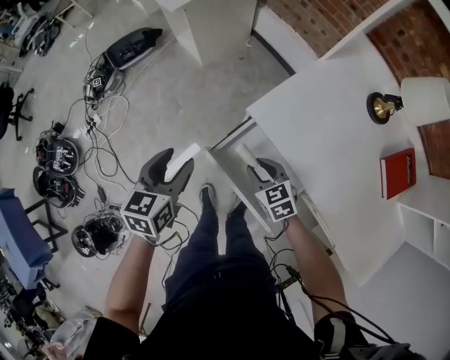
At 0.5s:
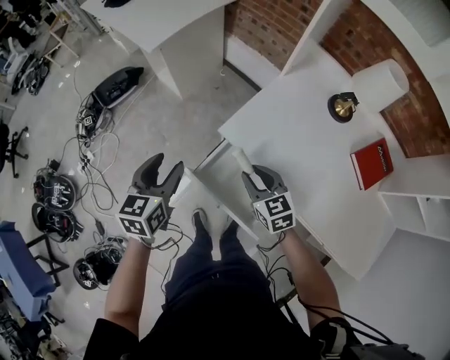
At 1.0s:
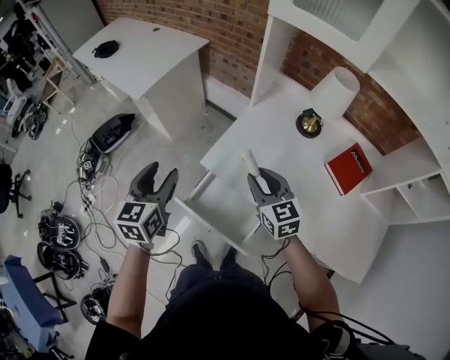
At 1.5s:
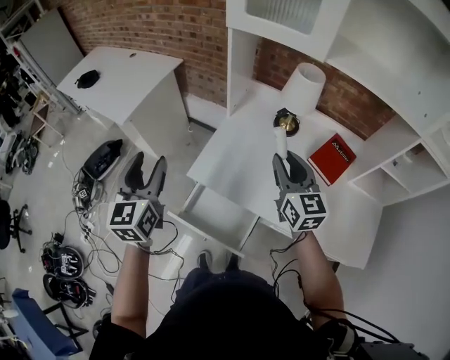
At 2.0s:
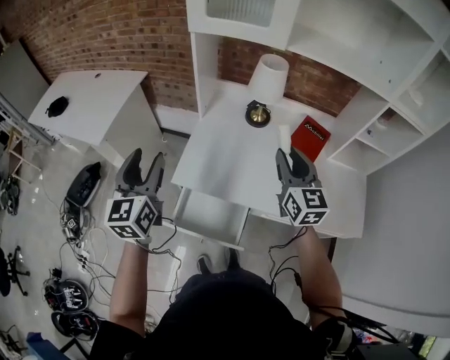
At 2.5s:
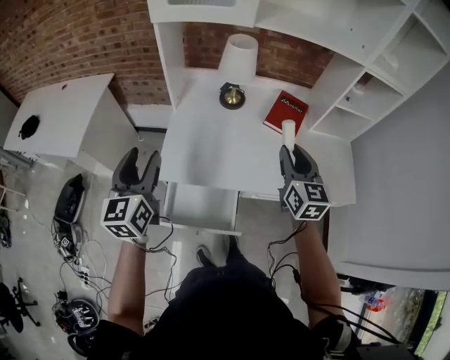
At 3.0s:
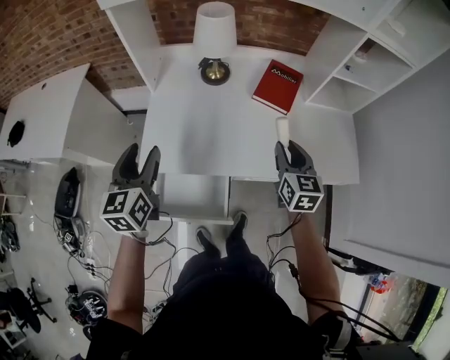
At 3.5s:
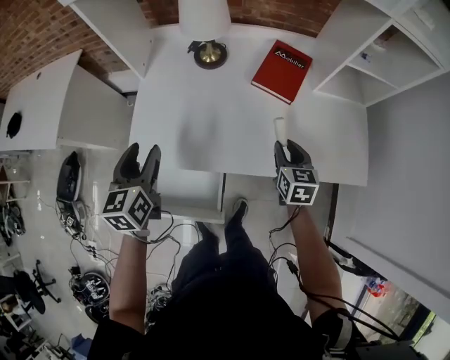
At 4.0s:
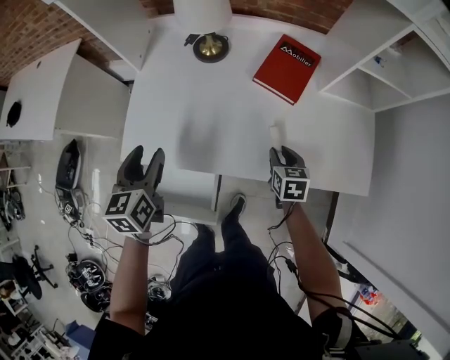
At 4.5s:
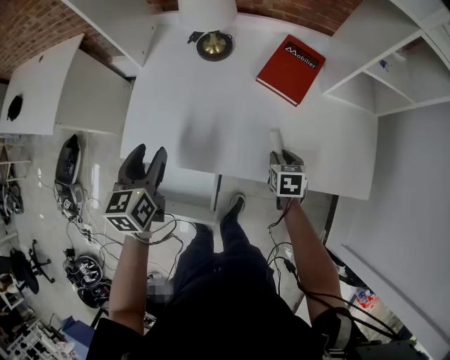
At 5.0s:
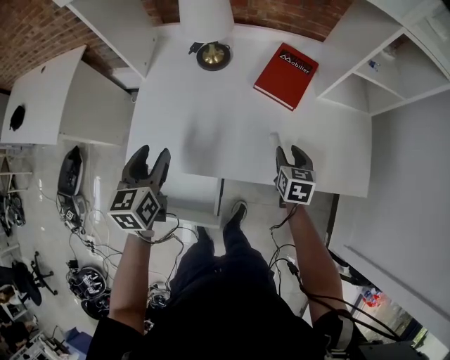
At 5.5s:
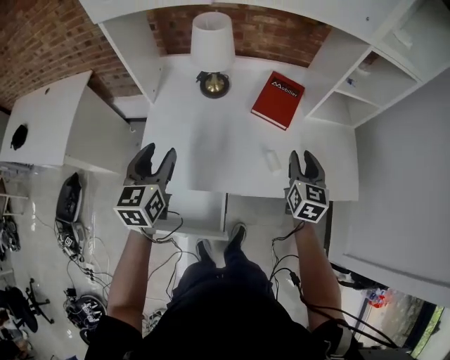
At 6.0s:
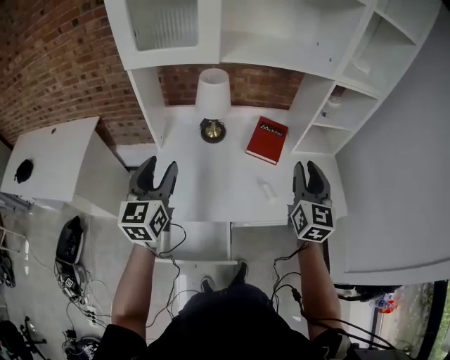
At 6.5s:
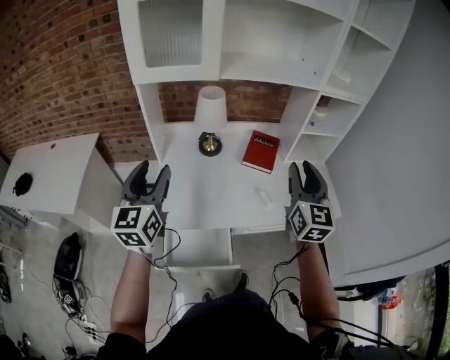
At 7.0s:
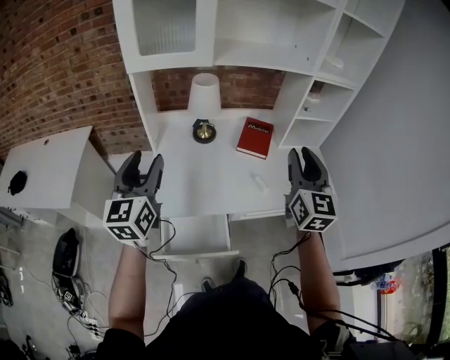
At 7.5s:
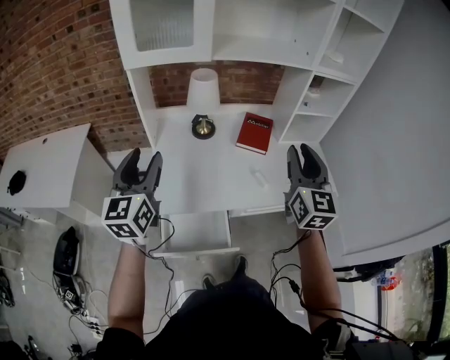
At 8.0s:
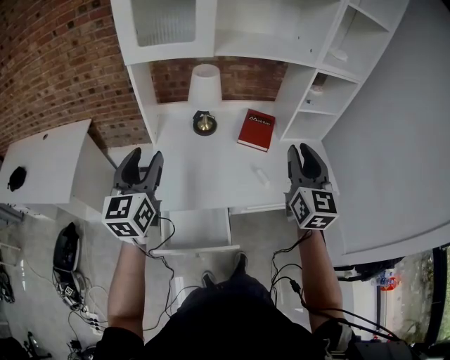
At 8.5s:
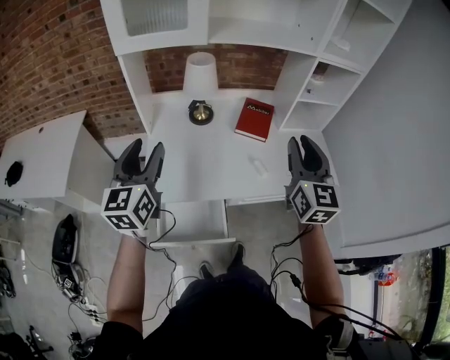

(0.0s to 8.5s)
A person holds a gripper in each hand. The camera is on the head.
0.0s - 2.0s: Both grippers travel together upward, some 35 cm. The left gripper rotates approximately 40 degrees; the right gripper points its fingers about 40 degrees further upward.
2.0s - 4.0s: Both grippers travel together downward and to the right, approximately 35 cm. The right gripper points its fingers some 40 degrees further downward; the left gripper rotates roughly 30 degrees.
4.0s - 6.5s: The left gripper heads upward, covering approximately 25 cm, and changes its angle by roughly 30 degrees. The right gripper moves upward, some 40 cm, and tips its fingers upward by about 50 degrees.
6.5s - 8.5s: The grippers stay close to where they were, moving slightly.

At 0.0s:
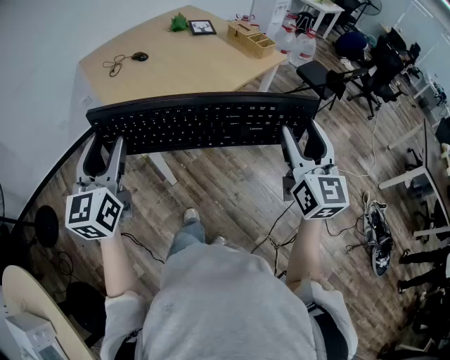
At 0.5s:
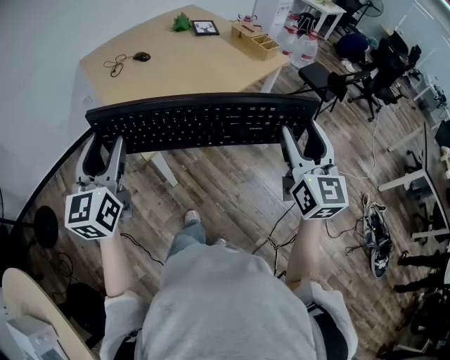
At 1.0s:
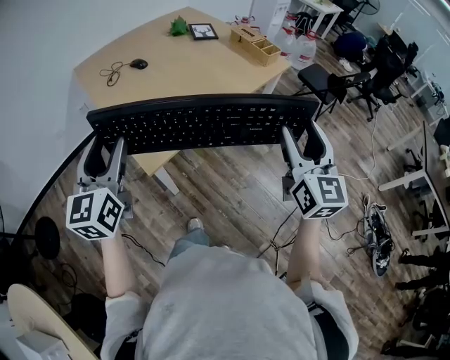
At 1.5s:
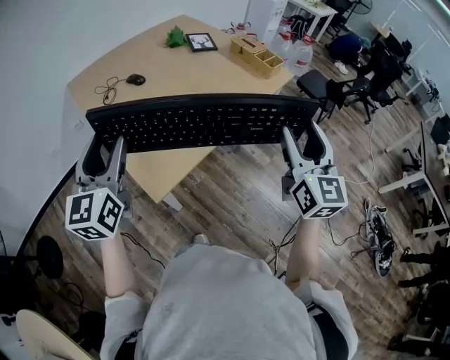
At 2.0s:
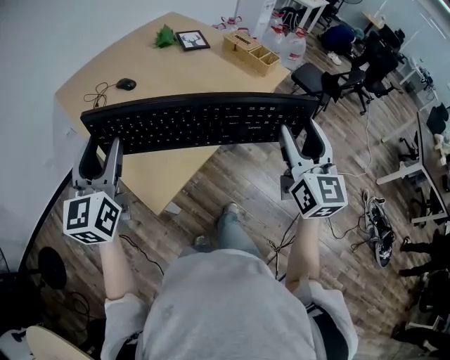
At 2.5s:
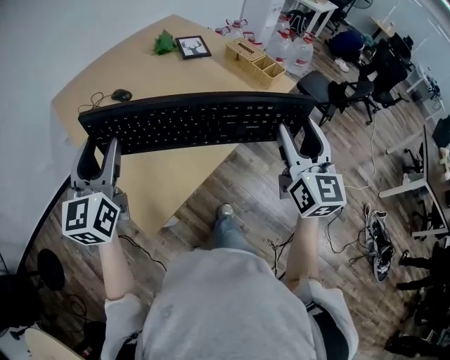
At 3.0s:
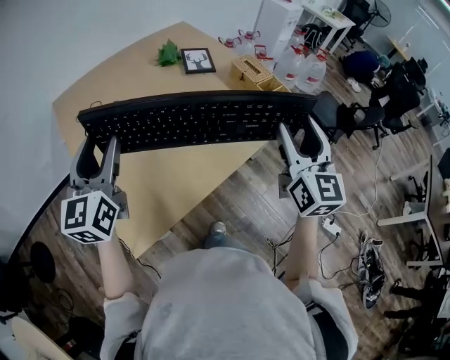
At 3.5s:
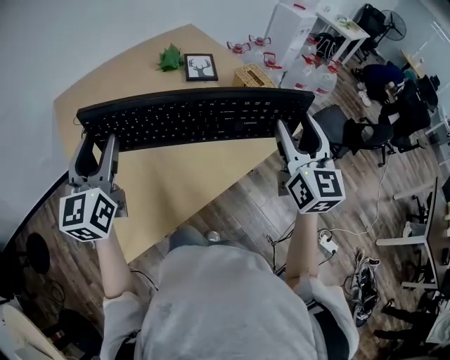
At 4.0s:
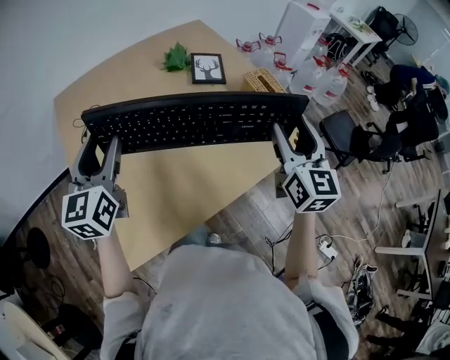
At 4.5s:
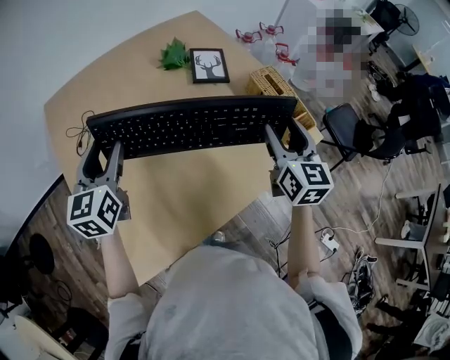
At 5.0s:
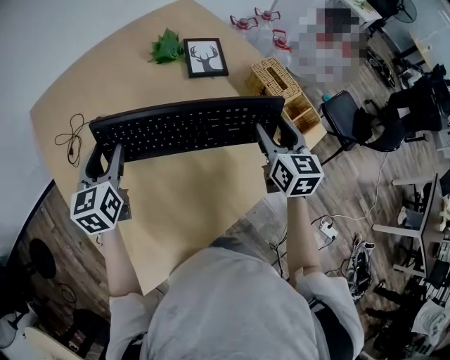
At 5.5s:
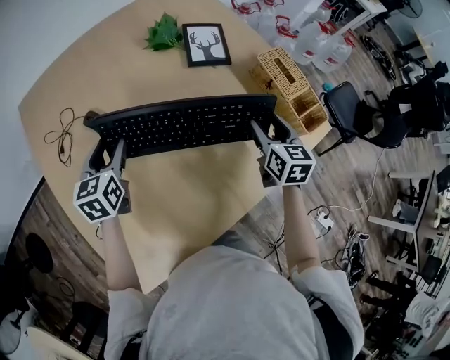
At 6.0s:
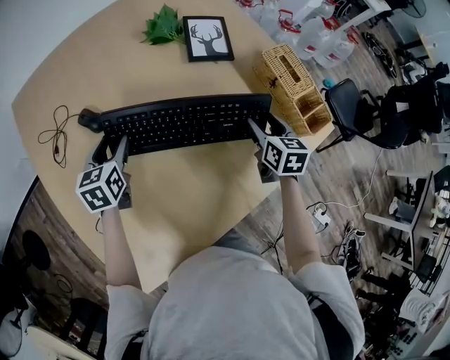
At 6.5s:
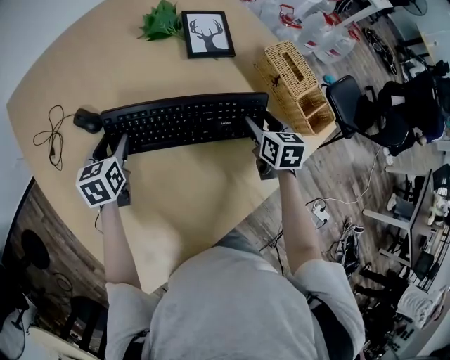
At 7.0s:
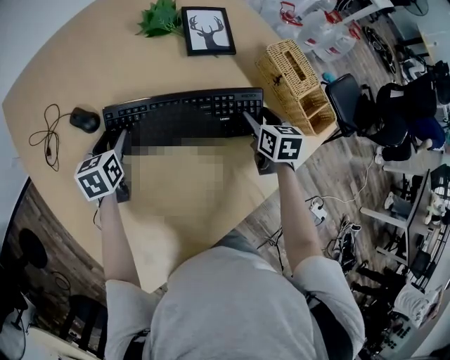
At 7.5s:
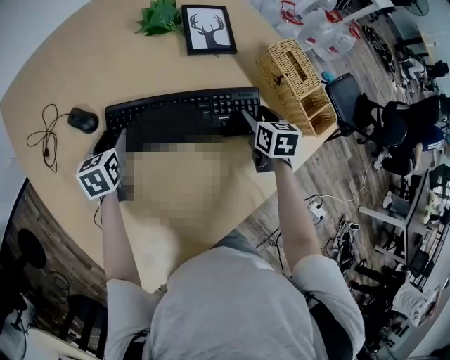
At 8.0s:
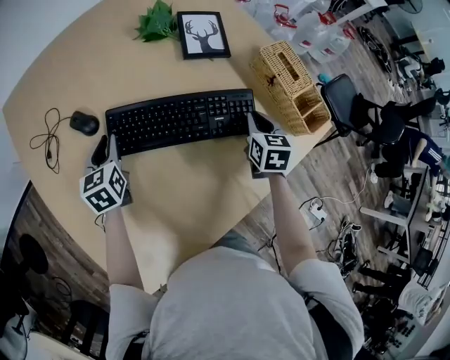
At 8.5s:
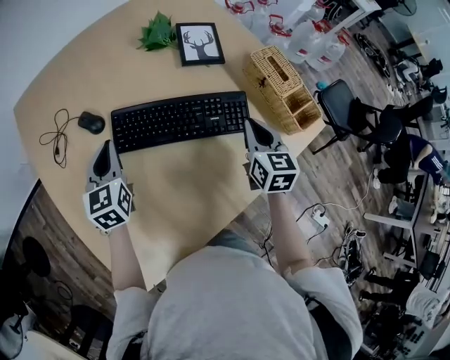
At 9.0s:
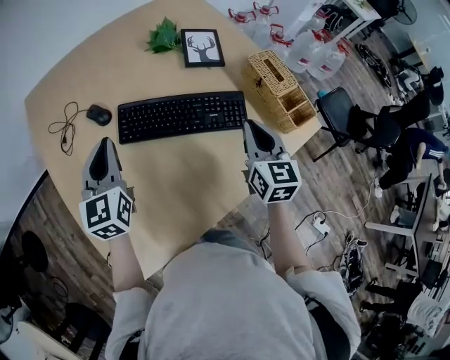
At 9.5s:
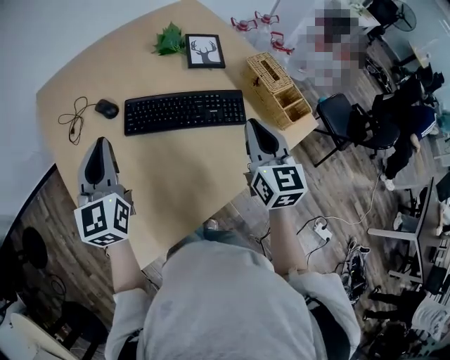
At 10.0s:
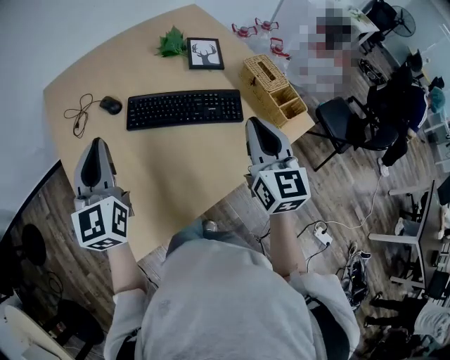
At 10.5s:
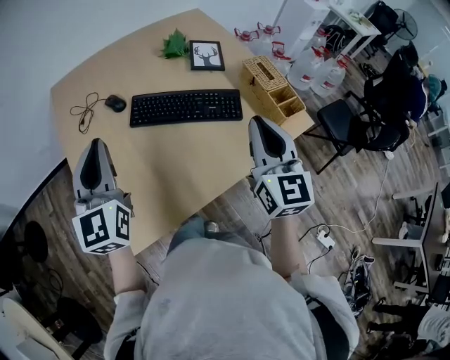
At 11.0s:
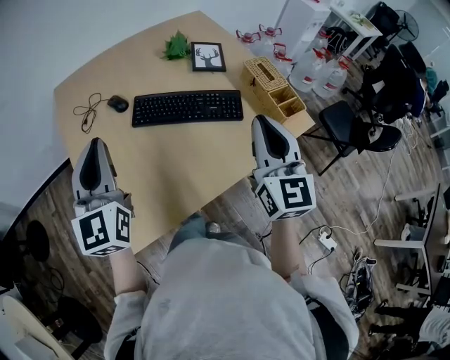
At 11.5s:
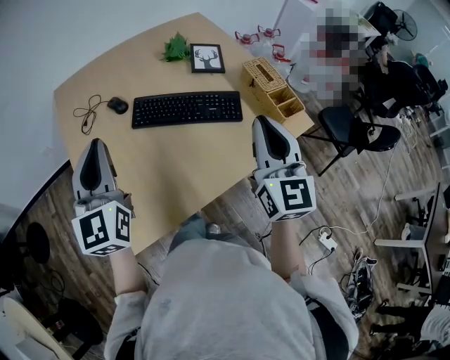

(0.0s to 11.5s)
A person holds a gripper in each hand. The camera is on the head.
0.0s - 2.0s: The two grippers go approximately 20 cm forward.
2.0s - 4.0s: Both grippers move forward, roughly 35 cm.
4.0s - 6.0s: Both grippers move downward and forward, some 35 cm. The left gripper tips its fingers downward by roughly 30 degrees. The right gripper tilts its fingers roughly 40 degrees downward.
6.0s - 7.5s: The grippers move only a little.
7.5s - 9.5s: Both grippers move upward and backward, about 30 cm. The right gripper angles its fingers upward, by roughly 40 degrees, and closes. The left gripper points its fingers roughly 40 degrees further upward, and closes its fingers.
9.5s - 11.5s: The right gripper moves upward and backward, approximately 15 cm. Meanwhile the left gripper heads backward and upward, covering about 15 cm.

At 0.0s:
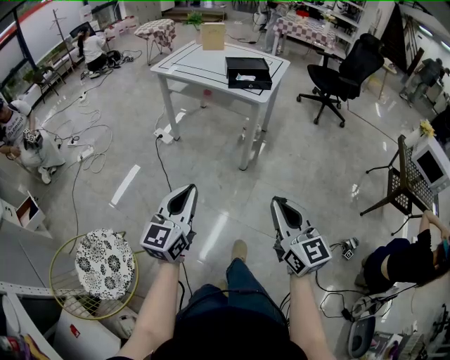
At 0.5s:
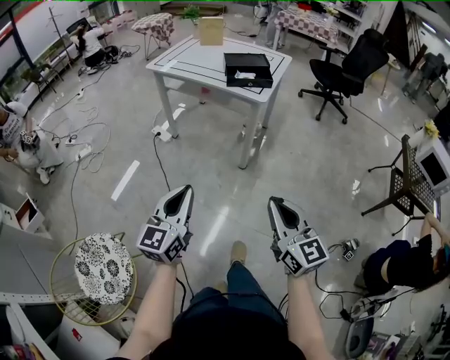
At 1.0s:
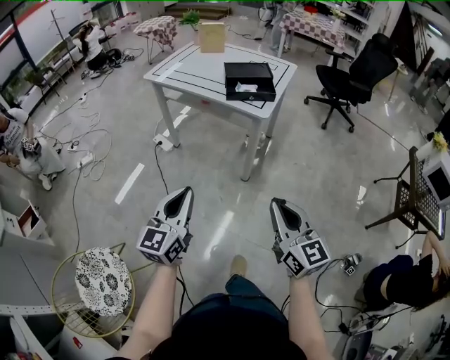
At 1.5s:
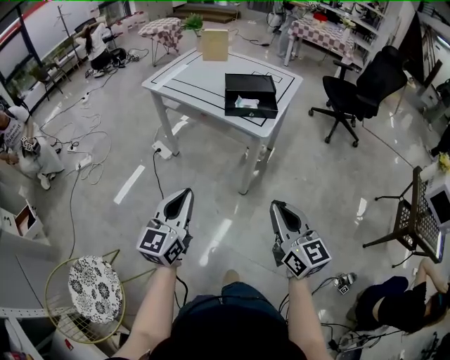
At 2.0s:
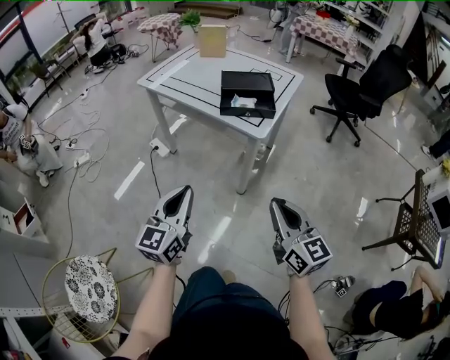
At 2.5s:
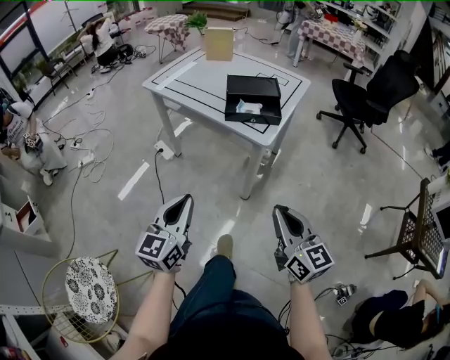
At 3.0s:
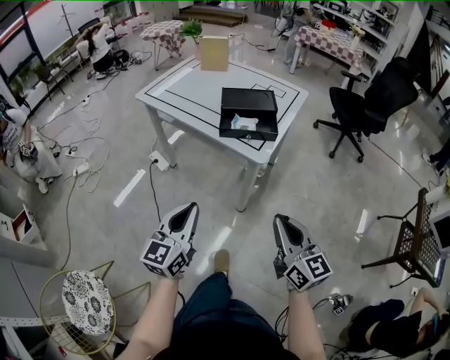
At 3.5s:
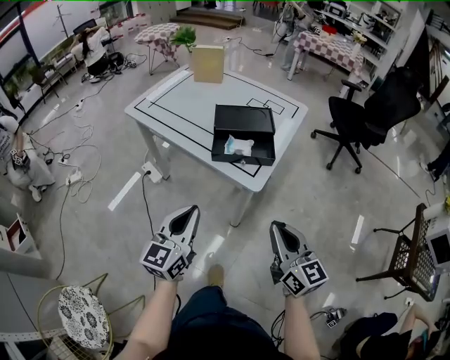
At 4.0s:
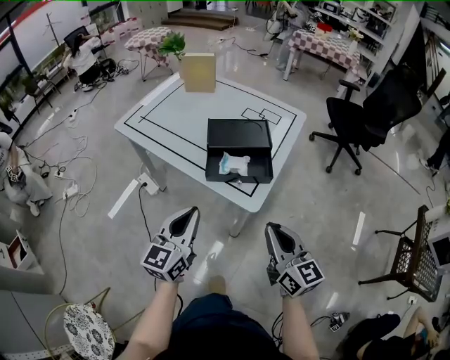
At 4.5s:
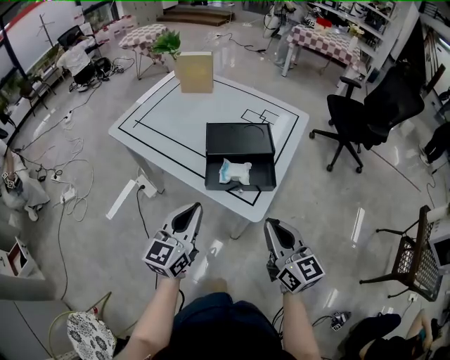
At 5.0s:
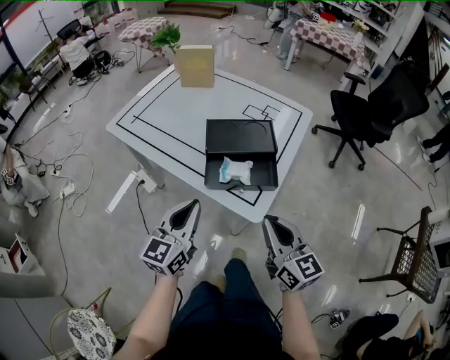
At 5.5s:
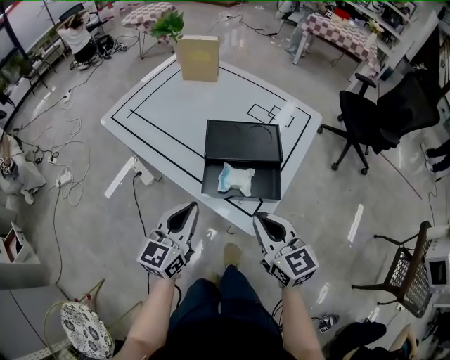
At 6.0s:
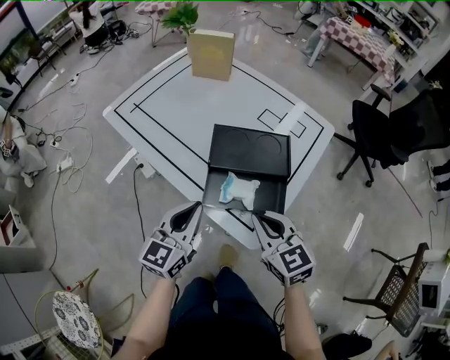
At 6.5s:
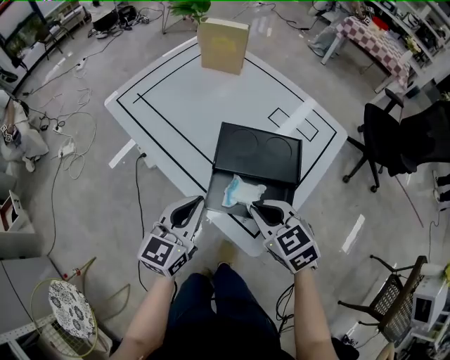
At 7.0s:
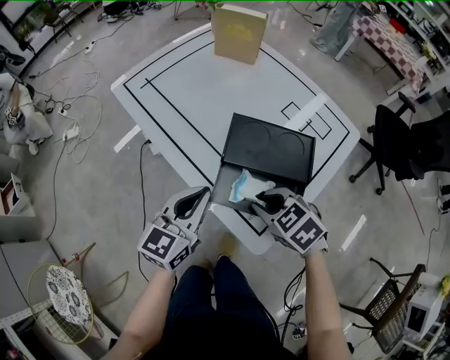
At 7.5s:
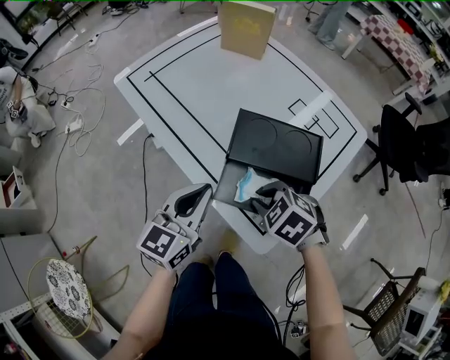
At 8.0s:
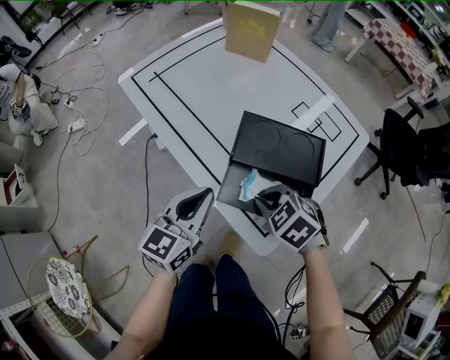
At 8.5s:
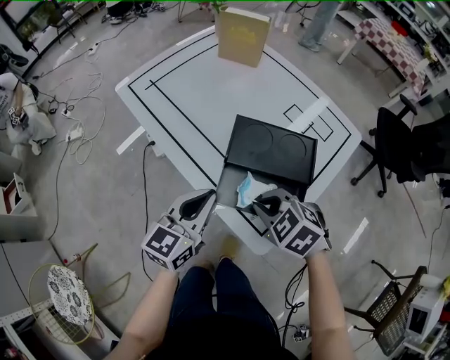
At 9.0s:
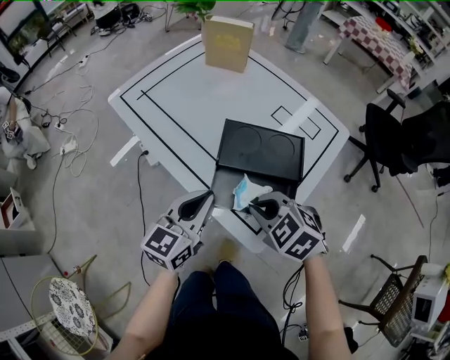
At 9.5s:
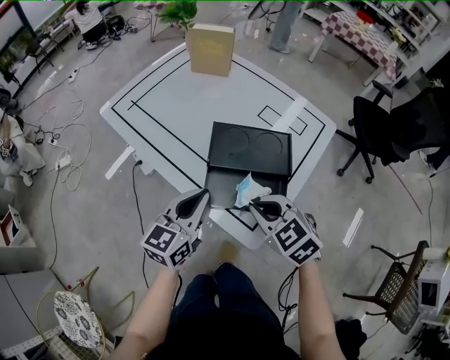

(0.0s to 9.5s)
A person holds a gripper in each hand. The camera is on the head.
0.0s - 2.0s: The two grippers go some 30 cm forward.
2.0s - 4.0s: Both grippers move forward, about 25 cm.
4.0s - 5.5s: The grippers both shift forward by roughly 15 cm.
5.5s - 7.5s: The right gripper is displaced downward and forward by approximately 15 cm, and angles its fingers downward, by roughly 50 degrees. Meanwhile the left gripper goes some 10 cm forward.
7.5s - 9.5s: The right gripper shifts about 10 cm upward, and swivels about 30 degrees.
